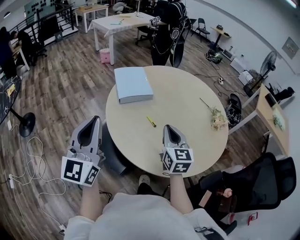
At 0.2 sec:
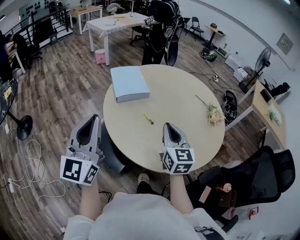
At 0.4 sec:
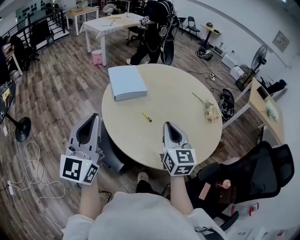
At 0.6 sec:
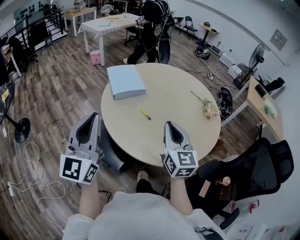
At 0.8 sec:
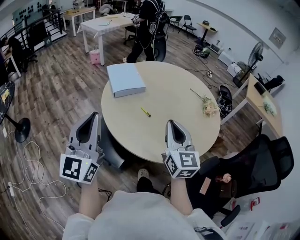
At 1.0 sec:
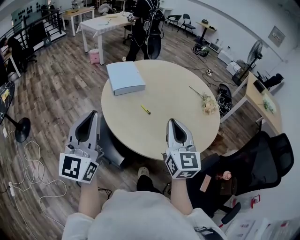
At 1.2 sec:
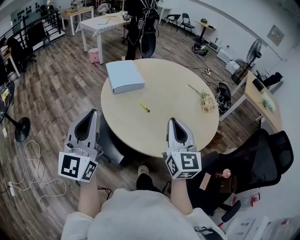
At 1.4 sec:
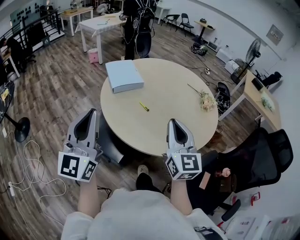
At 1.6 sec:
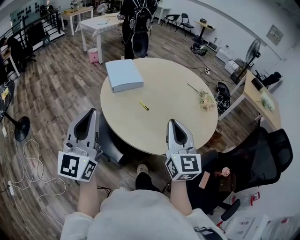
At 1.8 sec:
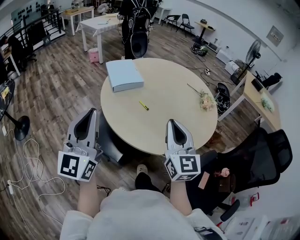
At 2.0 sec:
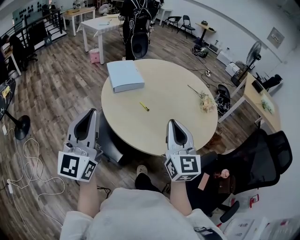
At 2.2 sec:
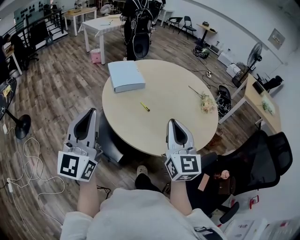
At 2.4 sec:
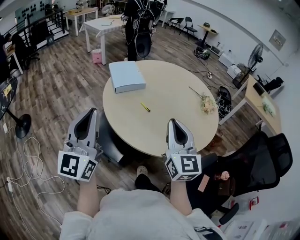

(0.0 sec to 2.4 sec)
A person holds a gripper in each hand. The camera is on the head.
0.0 sec - 1.2 sec: The right gripper heads backward and upward, covering about 15 cm. Meanwhile the left gripper shifts roughly 10 cm backward.
1.2 sec - 2.4 sec: There are only small adjustments of the grippers.

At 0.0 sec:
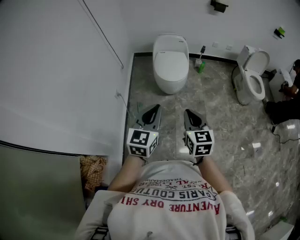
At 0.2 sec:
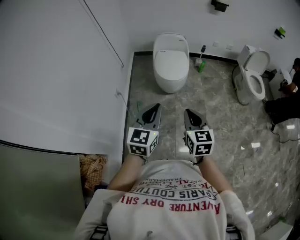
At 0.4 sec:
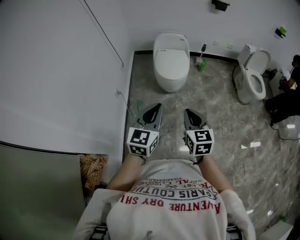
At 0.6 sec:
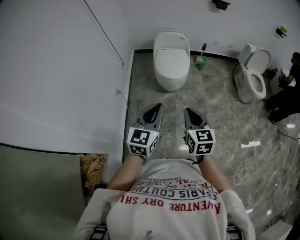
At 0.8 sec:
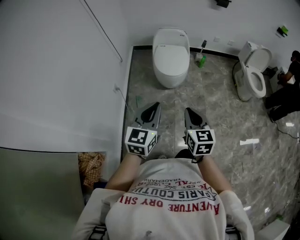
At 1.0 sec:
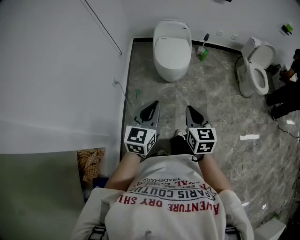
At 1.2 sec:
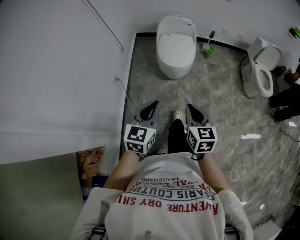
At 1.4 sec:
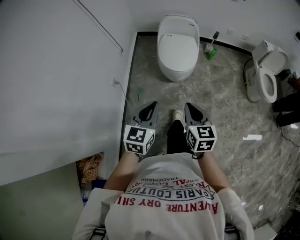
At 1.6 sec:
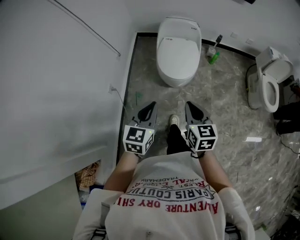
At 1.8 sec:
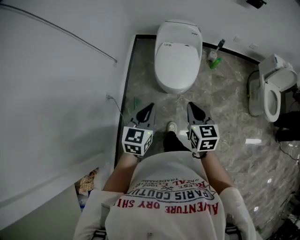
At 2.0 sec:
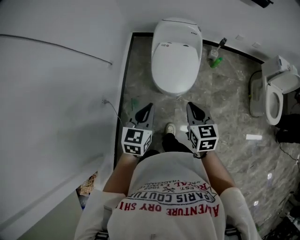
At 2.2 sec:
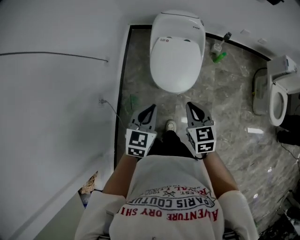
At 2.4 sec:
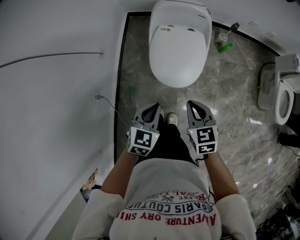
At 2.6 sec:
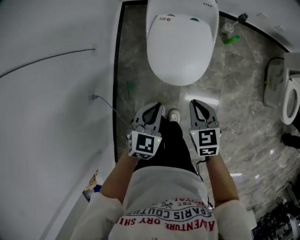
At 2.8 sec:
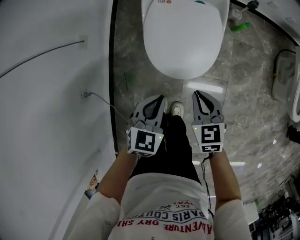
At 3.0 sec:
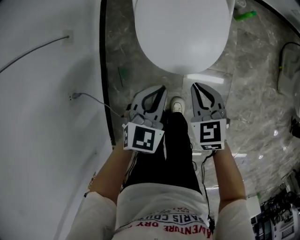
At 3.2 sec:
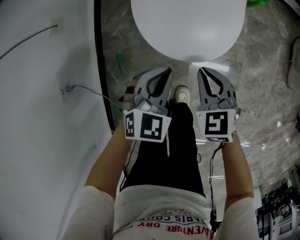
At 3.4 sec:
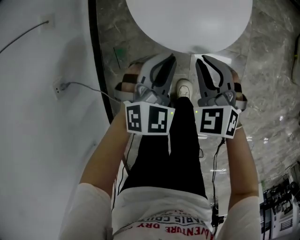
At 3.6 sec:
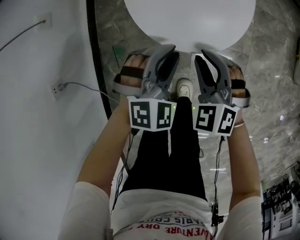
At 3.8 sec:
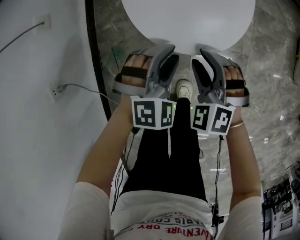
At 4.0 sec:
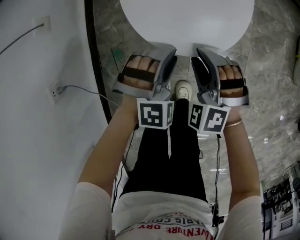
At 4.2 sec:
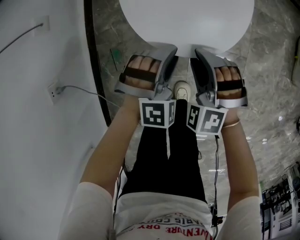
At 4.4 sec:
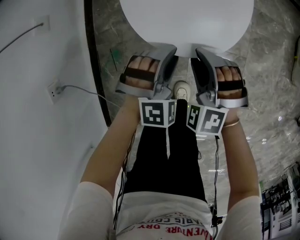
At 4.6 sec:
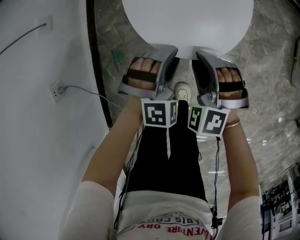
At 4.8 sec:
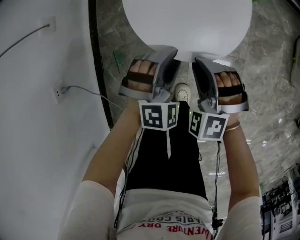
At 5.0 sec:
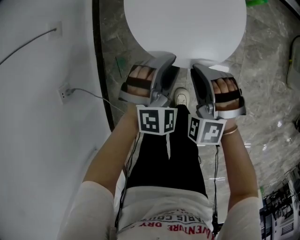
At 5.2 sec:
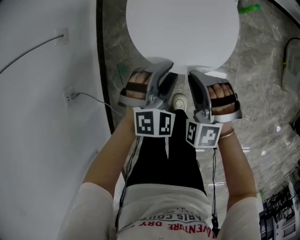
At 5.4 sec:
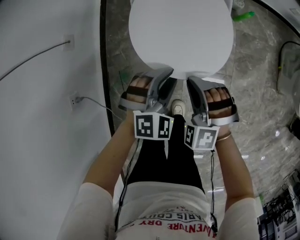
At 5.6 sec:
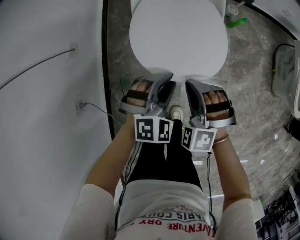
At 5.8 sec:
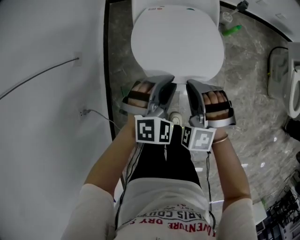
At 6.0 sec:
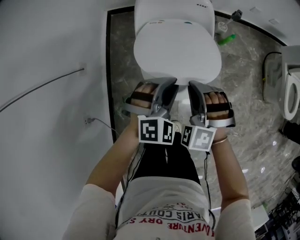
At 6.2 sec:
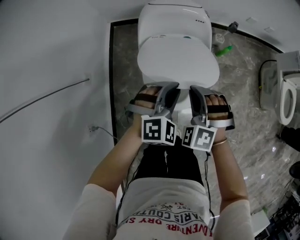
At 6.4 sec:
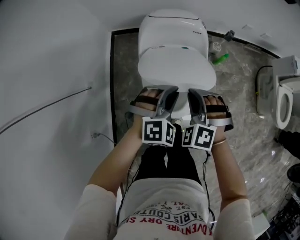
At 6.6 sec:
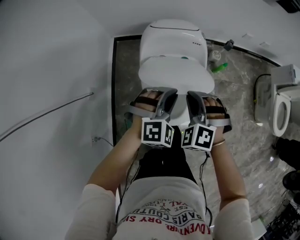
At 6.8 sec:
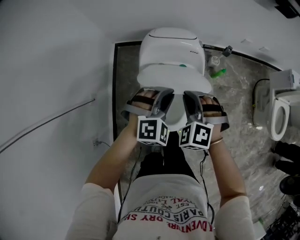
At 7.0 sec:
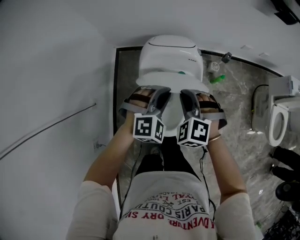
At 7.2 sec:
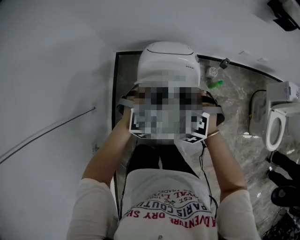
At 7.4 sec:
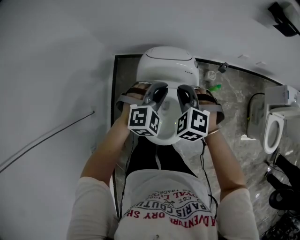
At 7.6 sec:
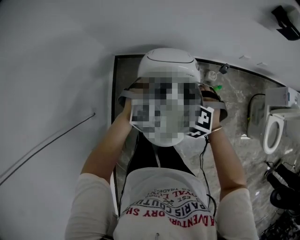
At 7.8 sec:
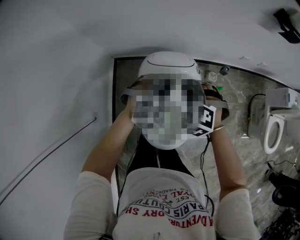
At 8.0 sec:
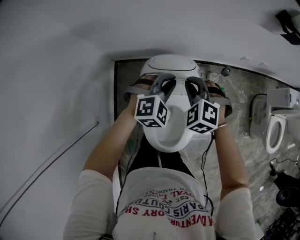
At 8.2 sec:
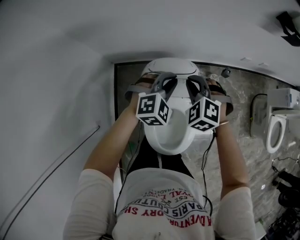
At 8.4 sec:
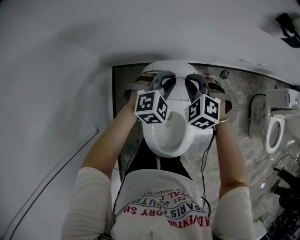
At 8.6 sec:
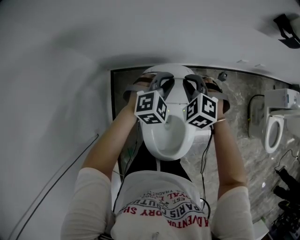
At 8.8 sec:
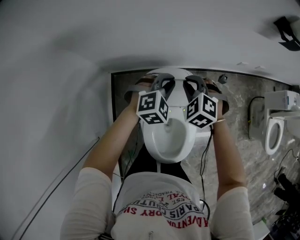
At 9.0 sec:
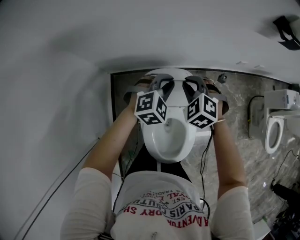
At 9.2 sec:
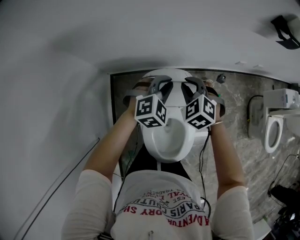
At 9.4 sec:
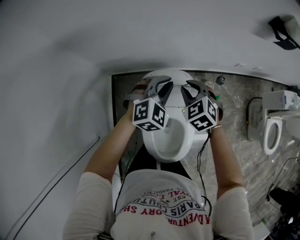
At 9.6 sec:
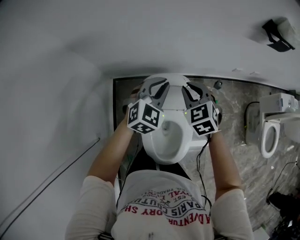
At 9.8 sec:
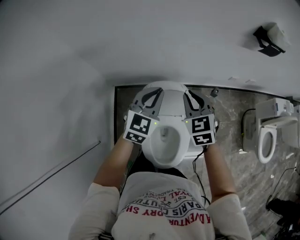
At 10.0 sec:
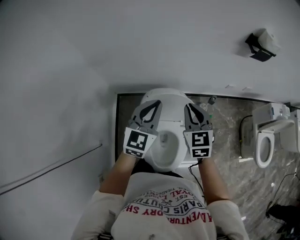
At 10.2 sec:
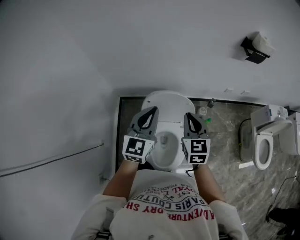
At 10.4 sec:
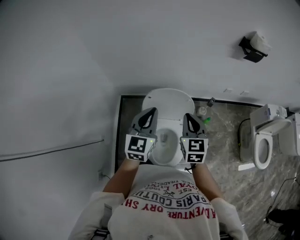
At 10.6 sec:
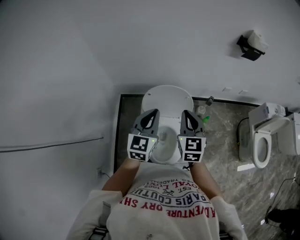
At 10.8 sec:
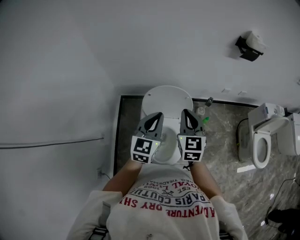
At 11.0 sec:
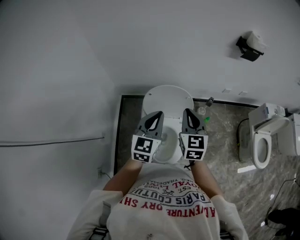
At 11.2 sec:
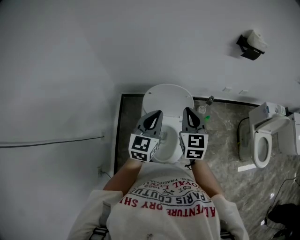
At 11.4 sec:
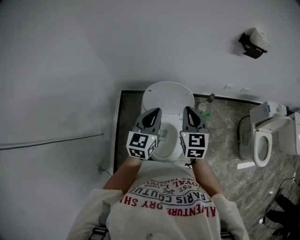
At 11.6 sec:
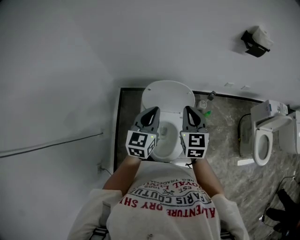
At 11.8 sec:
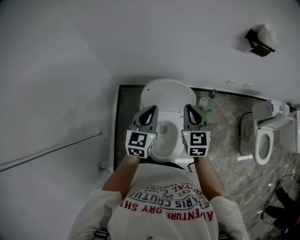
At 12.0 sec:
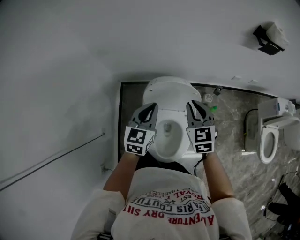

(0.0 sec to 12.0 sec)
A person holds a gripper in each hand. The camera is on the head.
0.0 sec - 1.6 sec: The right gripper goes about 25 cm forward. The left gripper moves forward and downward, roughly 25 cm.
1.6 sec - 3.0 sec: Both grippers move downward and forward, about 50 cm. The left gripper turns by approximately 30 degrees. Meanwhile the right gripper turns by approximately 30 degrees.
3.0 sec - 4.4 sec: Both grippers move downward, about 15 cm. The right gripper rotates around the line of its fingers by approximately 50 degrees, counterclockwise from behind, and opens. The left gripper twists roughly 50 degrees clockwise, seen from behind, and opens its fingers.
4.4 sec - 6.0 sec: The two grippers go about 25 cm upward. The right gripper closes up.
6.0 sec - 7.6 sec: The grippers both shift forward and upward by roughly 30 cm.
7.6 sec - 9.0 sec: Both grippers travel together forward, approximately 15 cm.
9.0 sec - 10.4 sec: The two grippers go about 30 cm backward and upward. The left gripper angles its fingers upward, by about 30 degrees. Meanwhile the right gripper points its fingers some 30 degrees further upward.
10.4 sec - 12.0 sec: The right gripper is displaced forward by about 10 cm. Meanwhile the left gripper travels downward and forward by some 10 cm.

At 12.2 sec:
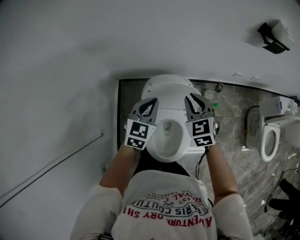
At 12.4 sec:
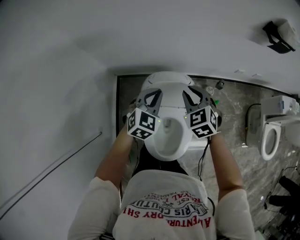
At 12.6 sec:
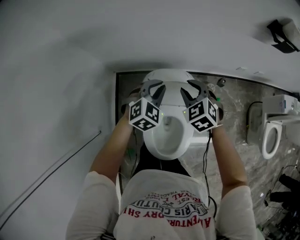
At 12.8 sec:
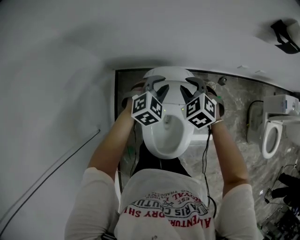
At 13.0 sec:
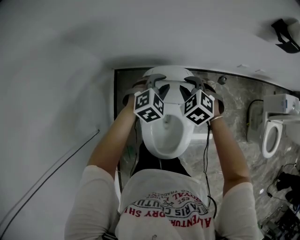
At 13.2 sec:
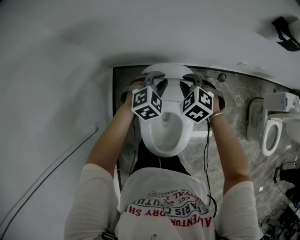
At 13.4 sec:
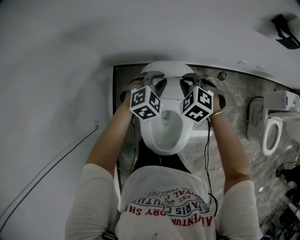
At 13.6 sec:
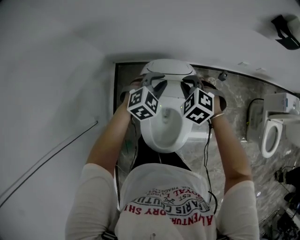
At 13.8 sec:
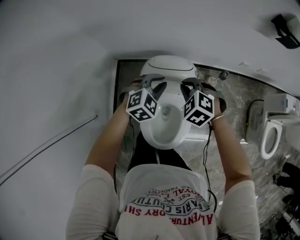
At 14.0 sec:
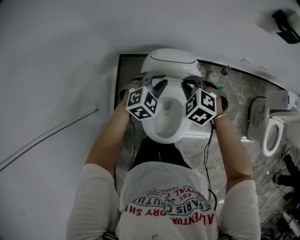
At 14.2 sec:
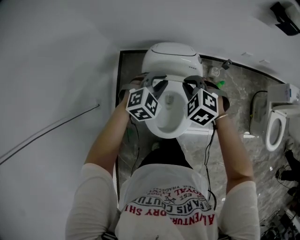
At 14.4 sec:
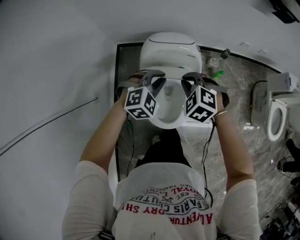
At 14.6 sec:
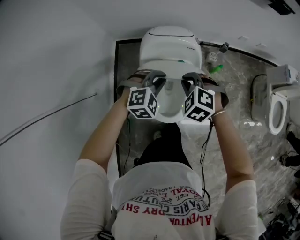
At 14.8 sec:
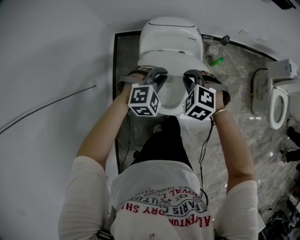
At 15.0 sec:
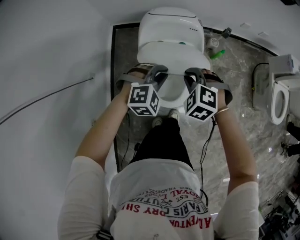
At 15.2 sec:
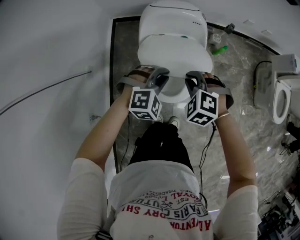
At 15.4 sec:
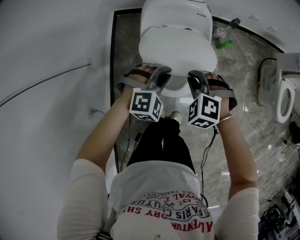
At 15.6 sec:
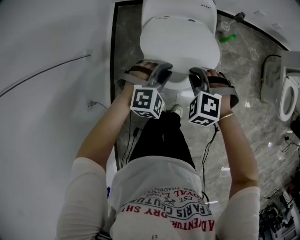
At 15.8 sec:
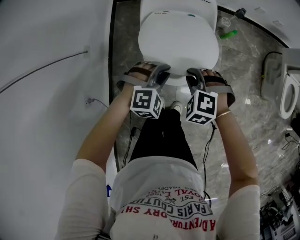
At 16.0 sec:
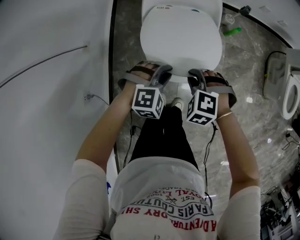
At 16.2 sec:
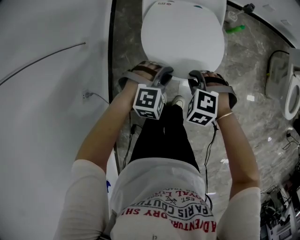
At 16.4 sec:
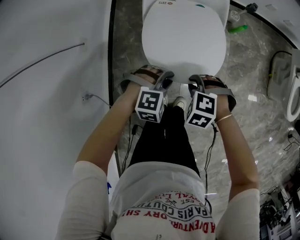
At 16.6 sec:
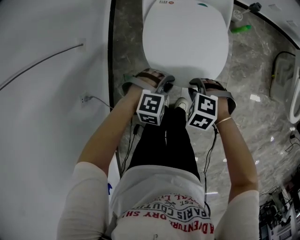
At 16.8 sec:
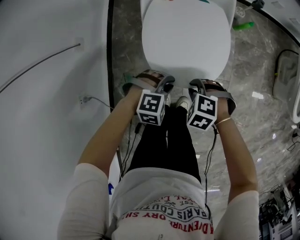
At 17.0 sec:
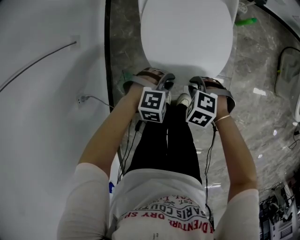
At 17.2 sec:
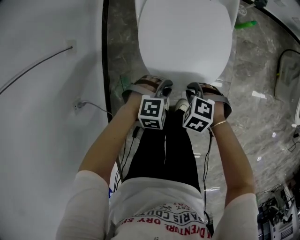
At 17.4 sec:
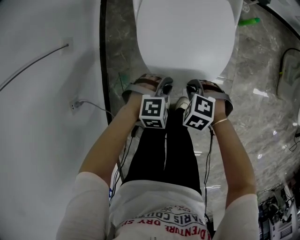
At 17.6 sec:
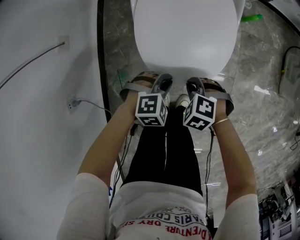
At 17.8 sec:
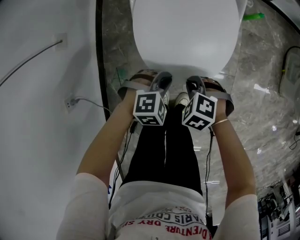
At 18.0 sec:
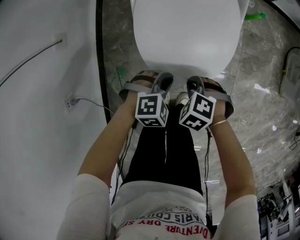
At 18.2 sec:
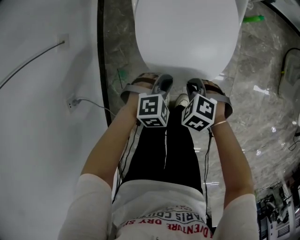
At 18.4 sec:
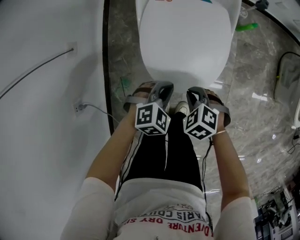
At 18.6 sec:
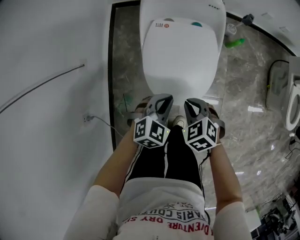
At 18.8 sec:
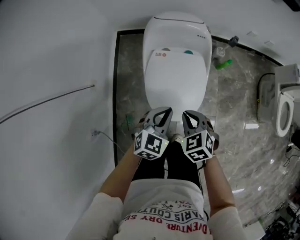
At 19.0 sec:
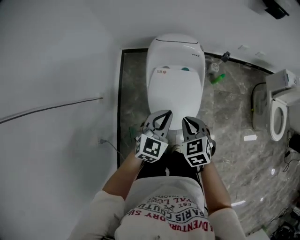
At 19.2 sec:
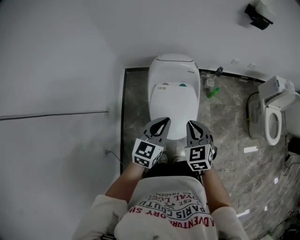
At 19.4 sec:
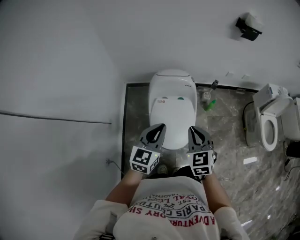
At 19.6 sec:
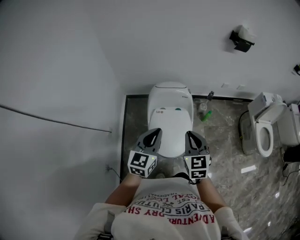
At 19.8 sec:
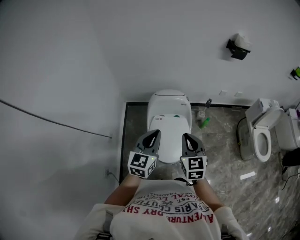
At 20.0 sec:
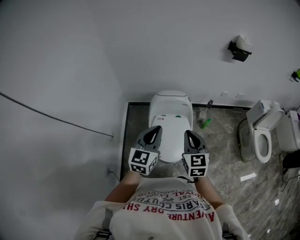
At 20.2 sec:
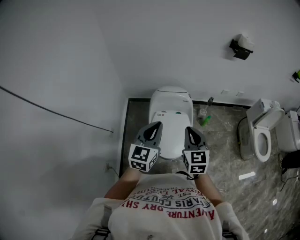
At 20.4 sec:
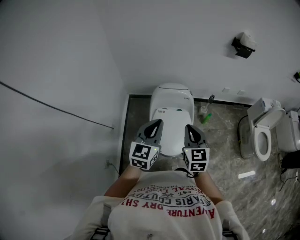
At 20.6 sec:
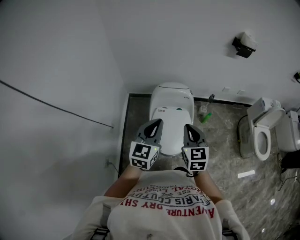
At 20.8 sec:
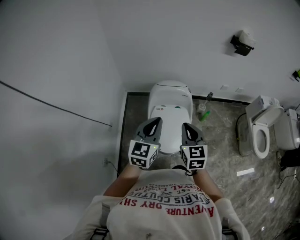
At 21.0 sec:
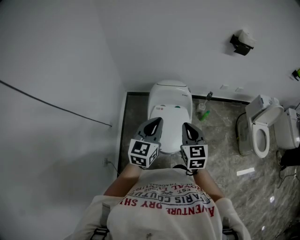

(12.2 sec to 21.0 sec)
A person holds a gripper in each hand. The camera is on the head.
12.2 sec - 13.6 sec: The left gripper moves downward and forward, approximately 10 cm, and rotates some 40 degrees. Meanwhile the right gripper travels downward by some 10 cm, and rotates roughly 40 degrees.
13.6 sec - 15.2 sec: The grippers both shift backward by about 30 cm. The left gripper rotates approximately 20 degrees.
15.2 sec - 16.6 sec: Both grippers travel together downward, roughly 20 cm. The right gripper swivels about 20 degrees.
16.6 sec - 18.0 sec: The two grippers go roughly 10 cm downward.
18.0 sec - 19.6 sec: Both grippers travel together upward, about 60 cm. The right gripper angles its fingers upward, by some 60 degrees, while the left gripper tilts its fingers about 50 degrees upward.
19.6 sec - 21.0 sec: The left gripper travels upward by approximately 5 cm.
